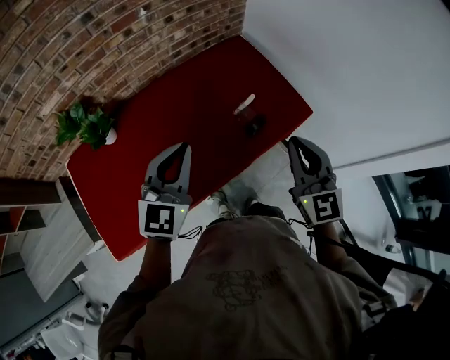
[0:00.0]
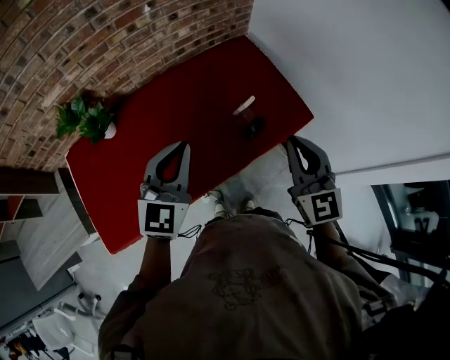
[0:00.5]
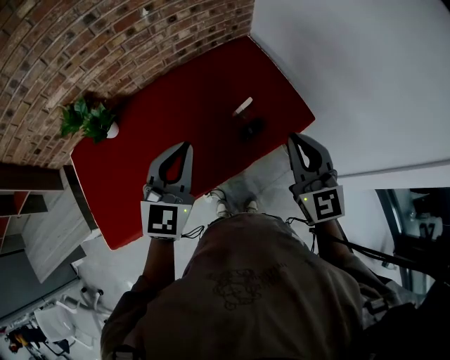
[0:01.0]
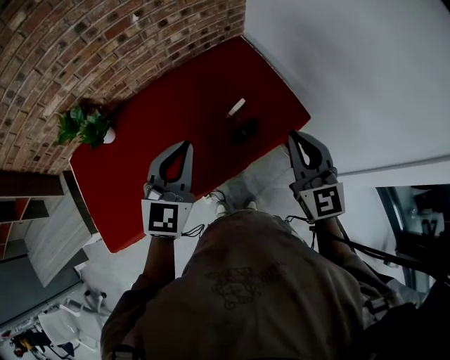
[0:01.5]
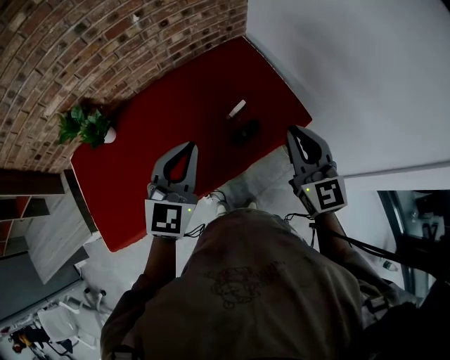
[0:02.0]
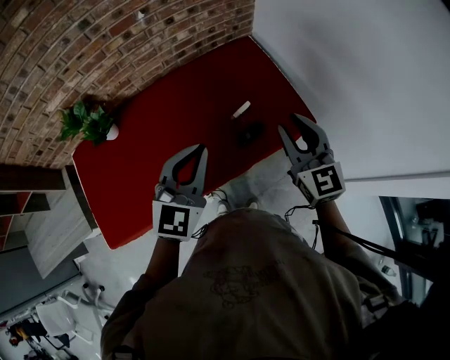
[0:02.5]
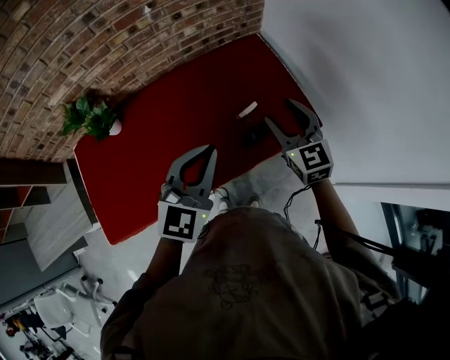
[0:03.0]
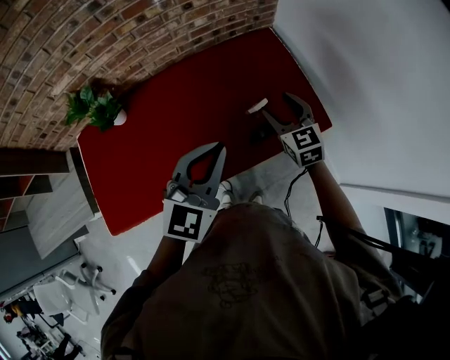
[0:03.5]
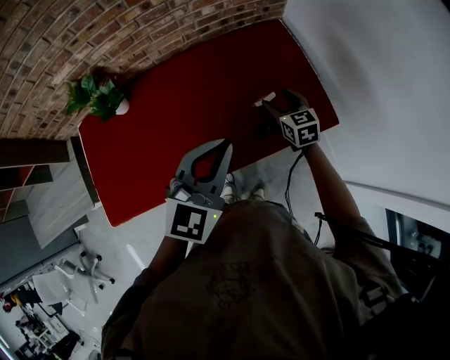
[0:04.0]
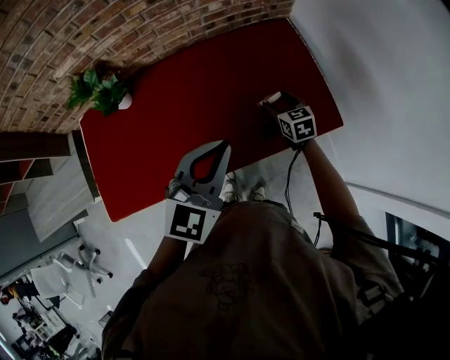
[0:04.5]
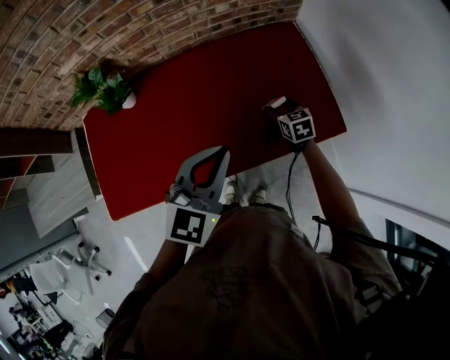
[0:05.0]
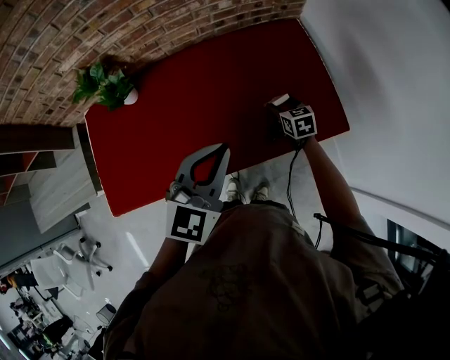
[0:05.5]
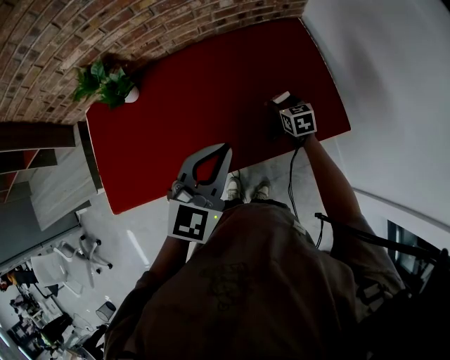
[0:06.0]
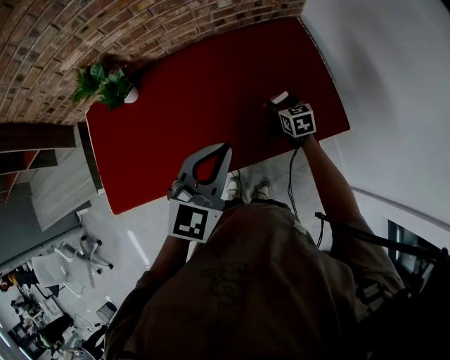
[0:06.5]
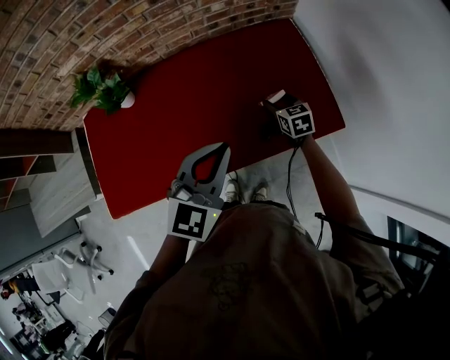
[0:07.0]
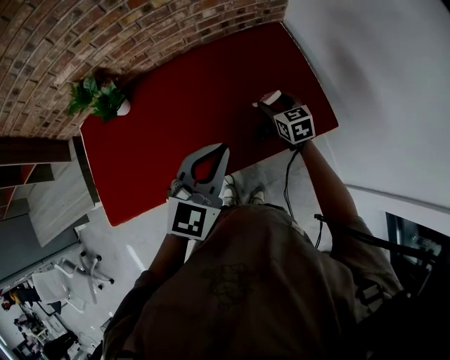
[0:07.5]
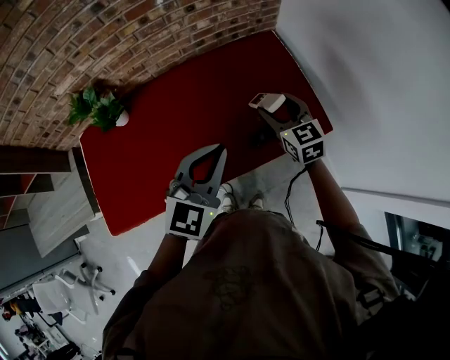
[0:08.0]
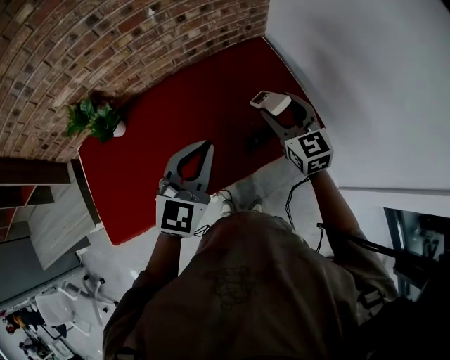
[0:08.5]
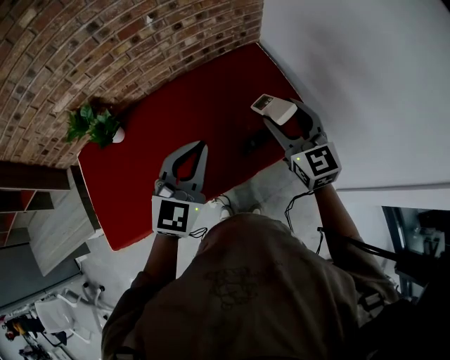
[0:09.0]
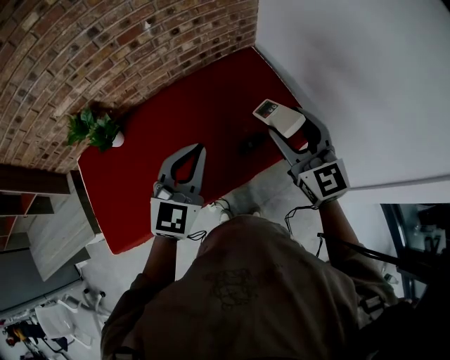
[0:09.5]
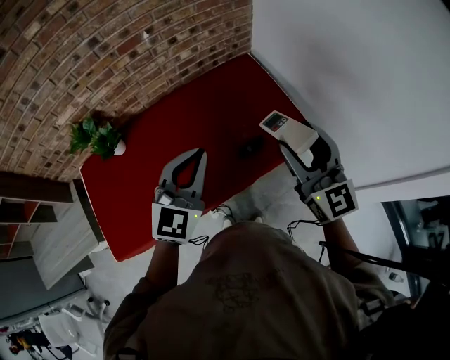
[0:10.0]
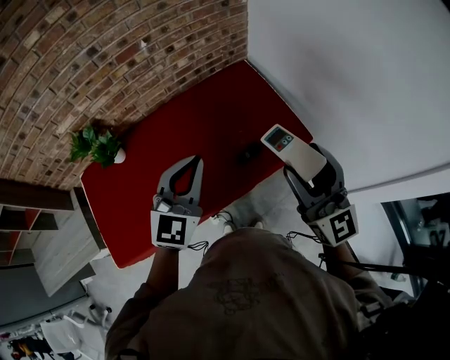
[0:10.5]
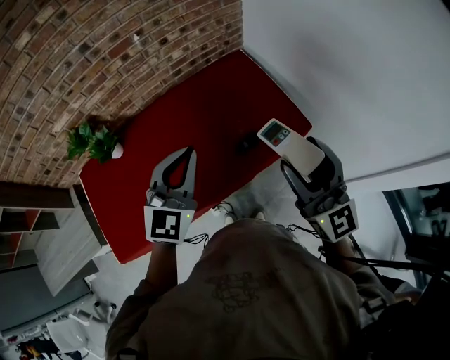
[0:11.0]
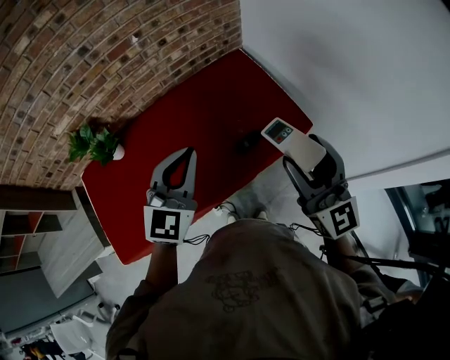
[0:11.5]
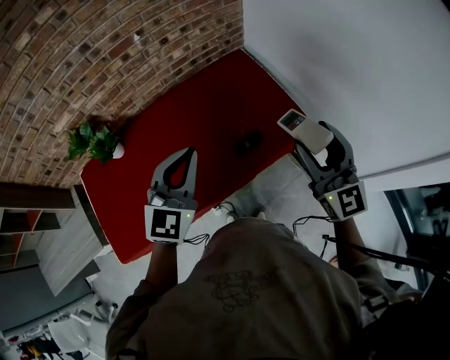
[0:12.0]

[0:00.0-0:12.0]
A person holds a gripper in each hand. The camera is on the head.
0:00.0 to 0:02.0: The left gripper shifts about 10 cm to the right, while the right gripper moves to the right and forward, roughly 10 cm.
0:02.0 to 0:04.0: The right gripper goes some 30 cm downward and forward, swivels about 30 degrees, and opens.
0:04.0 to 0:06.0: The right gripper travels downward by roughly 10 cm.
0:06.0 to 0:08.0: The right gripper shifts approximately 20 cm upward, and swivels about 20 degrees.
0:08.0 to 0:10.0: The right gripper travels upward and backward by some 25 cm, and swivels about 30 degrees. The left gripper shifts by approximately 5 cm.
0:10.0 to 0:12.0: There are only small adjustments of the grippers.

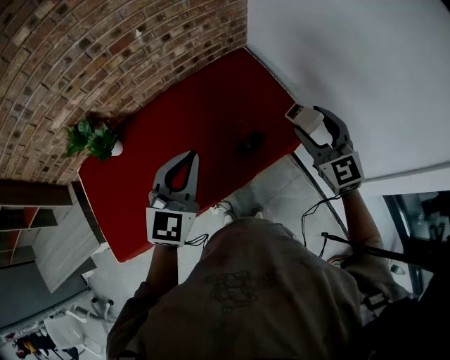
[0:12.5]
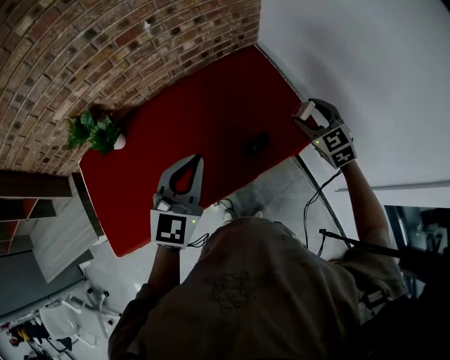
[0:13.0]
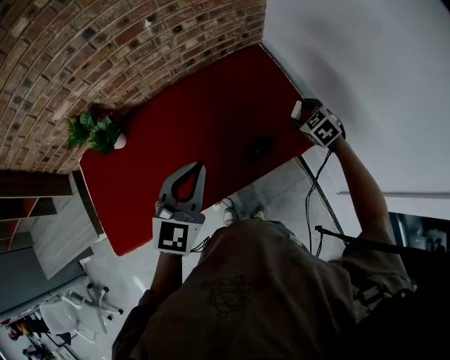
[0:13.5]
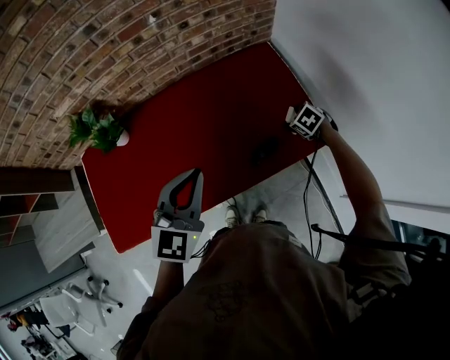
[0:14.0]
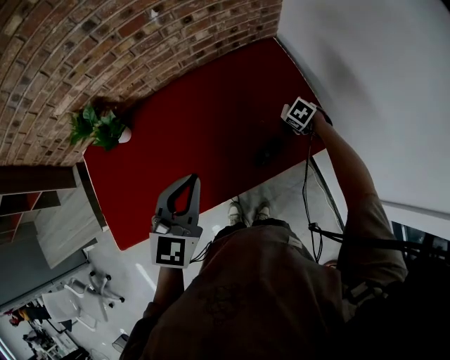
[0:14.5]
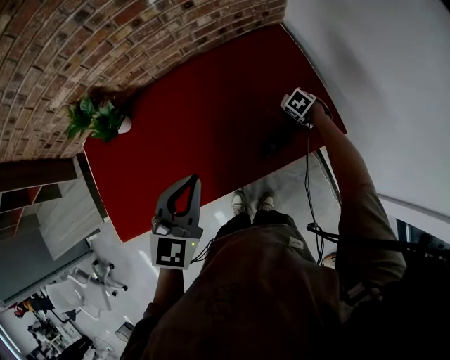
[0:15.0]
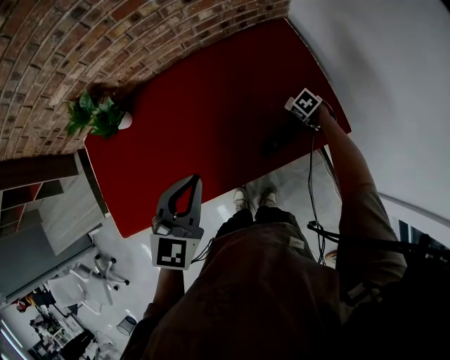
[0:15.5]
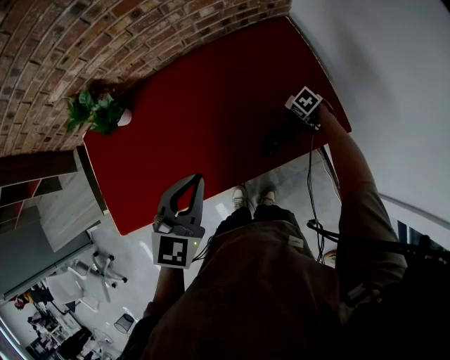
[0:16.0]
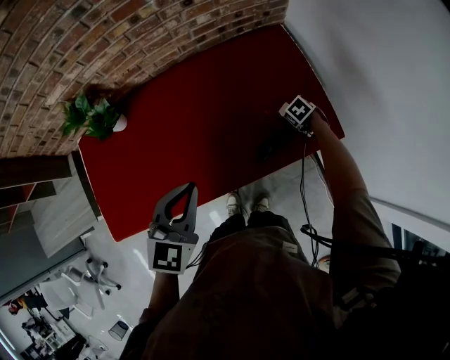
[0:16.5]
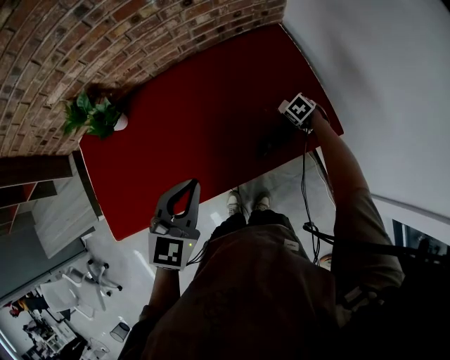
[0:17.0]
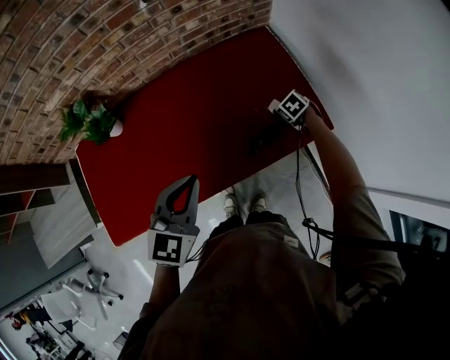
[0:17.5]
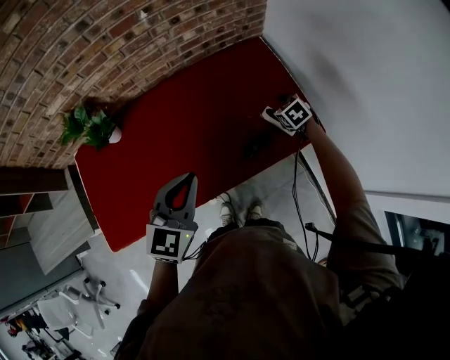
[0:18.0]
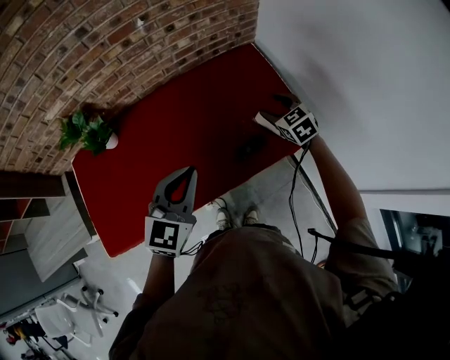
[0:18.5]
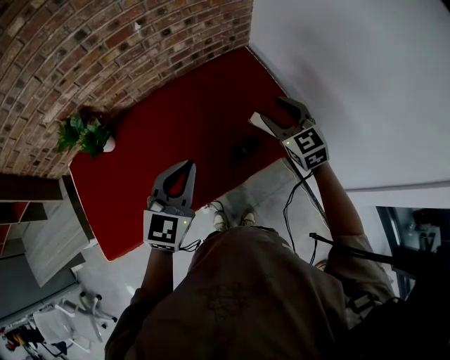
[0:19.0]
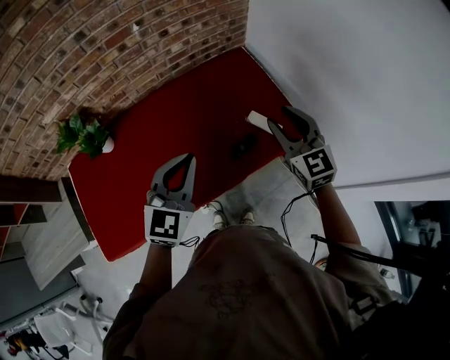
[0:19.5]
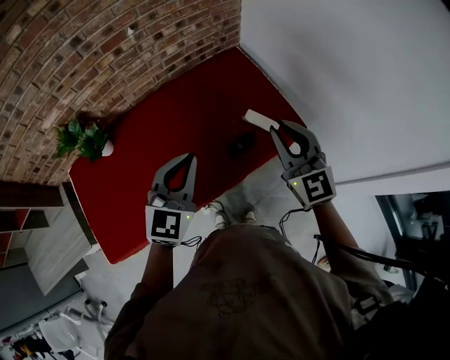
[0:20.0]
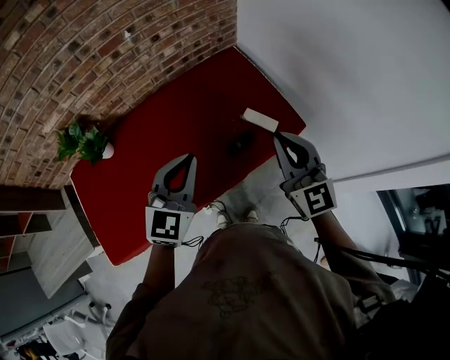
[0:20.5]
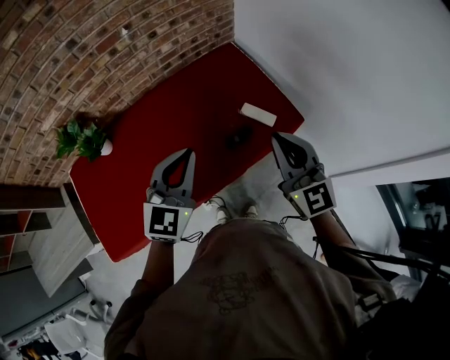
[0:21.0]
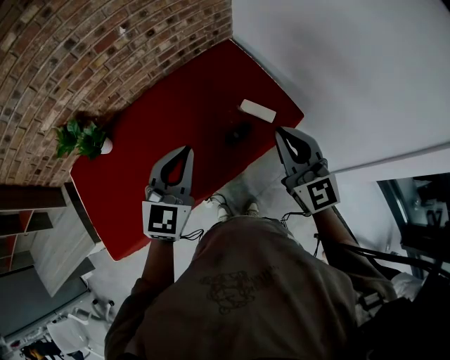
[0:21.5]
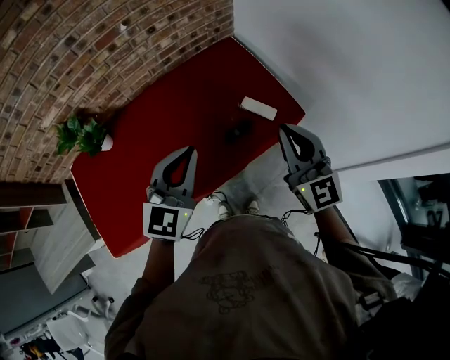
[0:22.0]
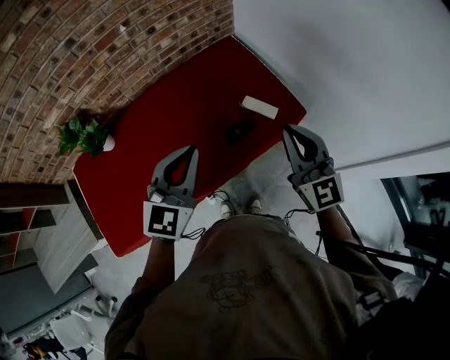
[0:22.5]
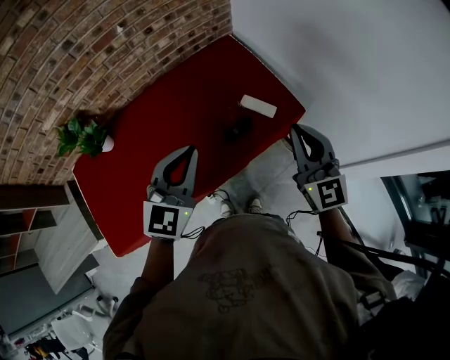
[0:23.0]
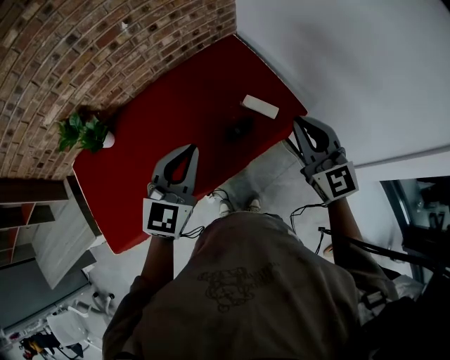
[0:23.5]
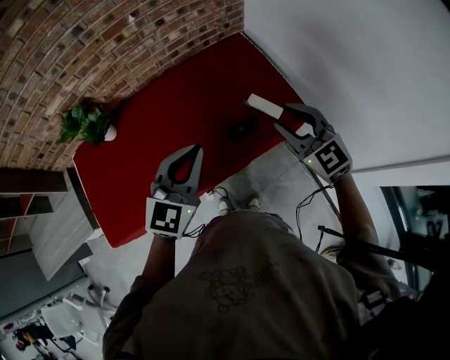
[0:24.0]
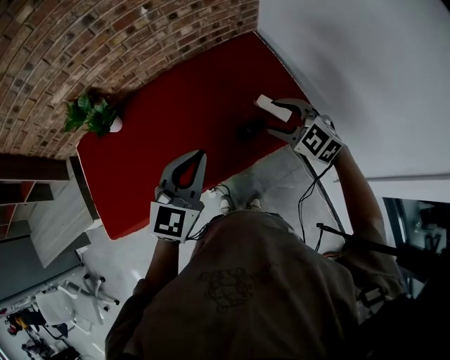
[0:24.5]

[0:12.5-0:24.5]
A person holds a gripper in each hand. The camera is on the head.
0:12.5 to 0:14.5: The left gripper ends up about 5 cm from where it was. Meanwhile the right gripper goes roughly 35 cm downward, and points its fingers roughly 60 degrees further downward.
0:14.5 to 0:16.5: The right gripper travels downward by roughly 10 cm, while the left gripper changes place by about 5 cm.
0:16.5 to 0:18.5: The right gripper travels upward by roughly 25 cm, and points its fingers approximately 40 degrees further upward.
0:18.5 to 0:20.5: The right gripper is displaced upward and backward by roughly 30 cm, angles its fingers upward, by some 40 degrees, and closes up; the left gripper ends up some 5 cm from where it was.
0:20.5 to 0:22.5: The grippers stay close to where they were, moving slightly.
0:22.5 to 0:24.5: The right gripper goes about 15 cm downward and forward, tips its fingers downward by roughly 40 degrees, and opens its fingers.

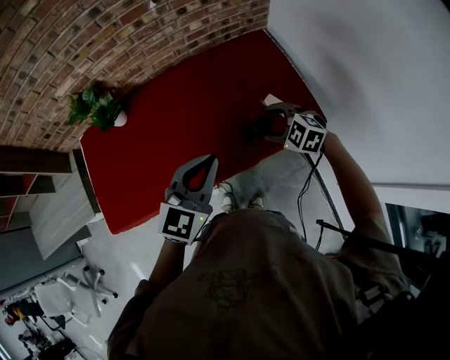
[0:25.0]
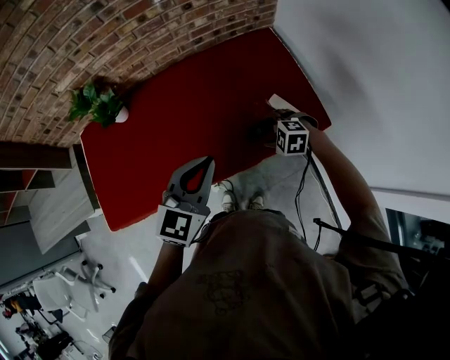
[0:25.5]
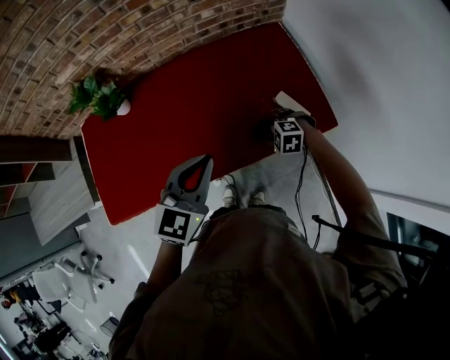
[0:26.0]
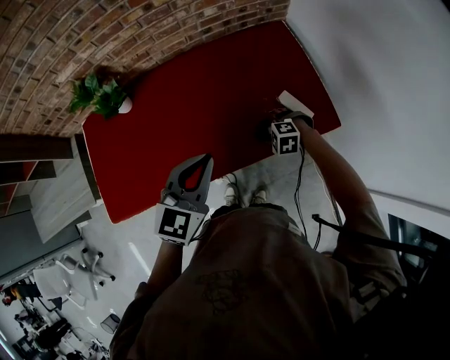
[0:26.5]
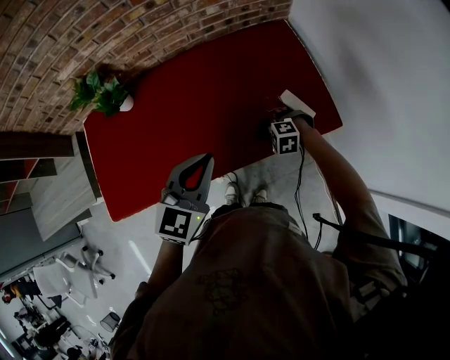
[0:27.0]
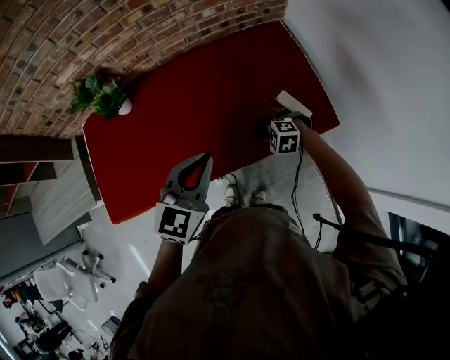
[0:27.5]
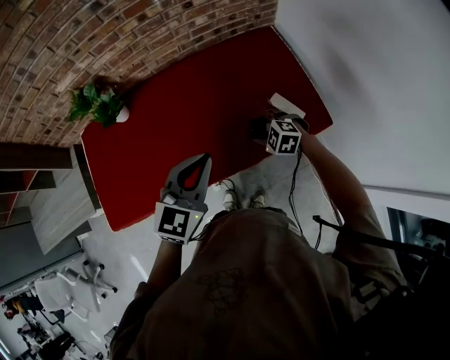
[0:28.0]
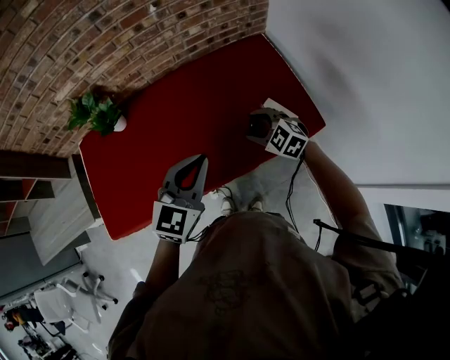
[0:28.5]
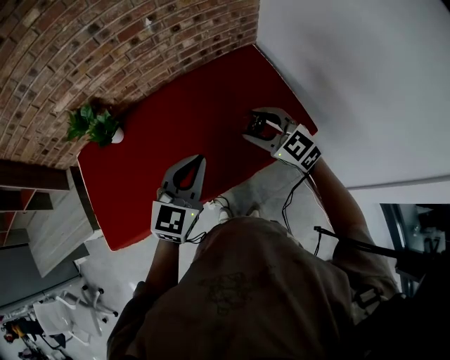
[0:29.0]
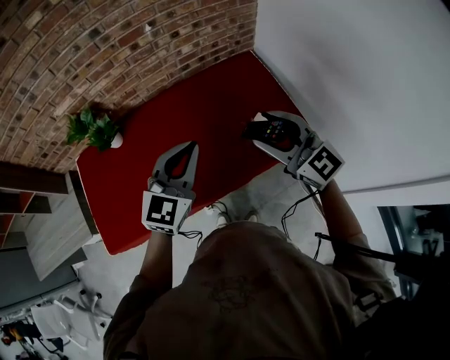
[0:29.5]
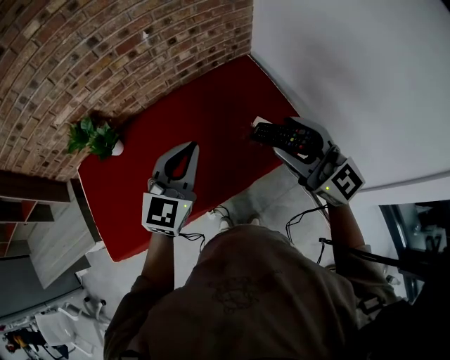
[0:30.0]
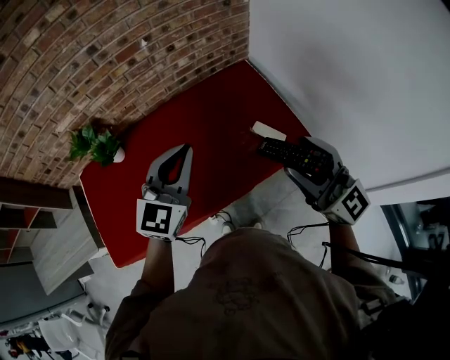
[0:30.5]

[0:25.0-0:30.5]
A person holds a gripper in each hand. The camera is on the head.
0:25.0 to 0:27.0: The right gripper goes roughly 15 cm downward, and swivels some 30 degrees. Meanwhile the left gripper changes place by roughly 5 cm.
0:27.0 to 0:28.5: The right gripper is displaced upward by about 15 cm, and turns by about 40 degrees.
0:28.5 to 0:30.5: The right gripper is displaced upward and backward by some 35 cm, and points its fingers some 60 degrees further upward, while the left gripper shifts approximately 10 cm upward and forward.
